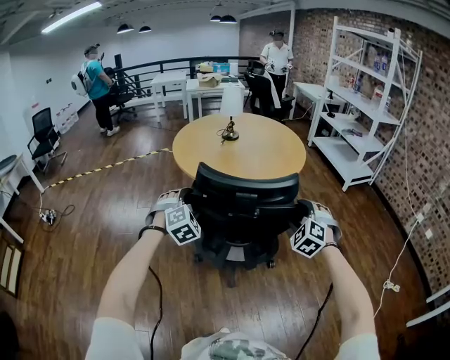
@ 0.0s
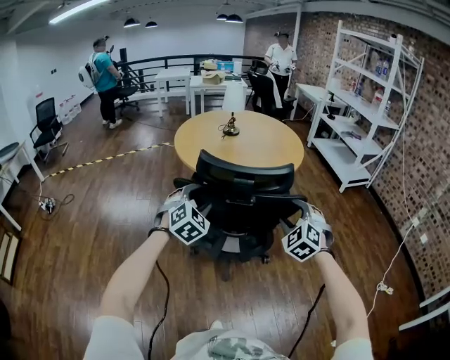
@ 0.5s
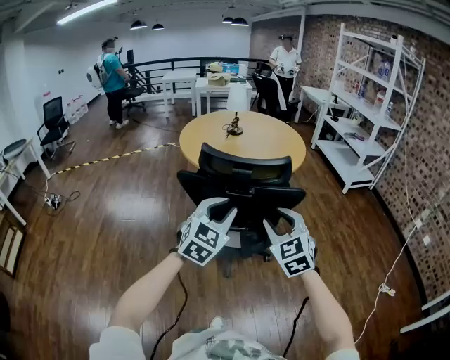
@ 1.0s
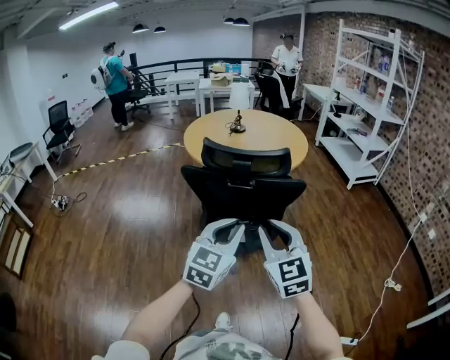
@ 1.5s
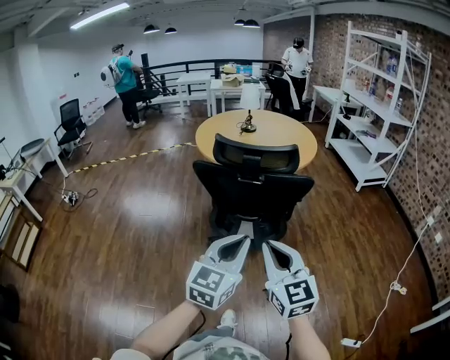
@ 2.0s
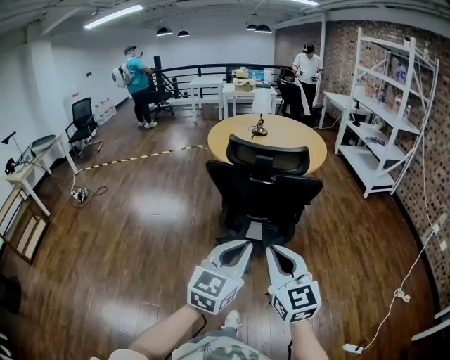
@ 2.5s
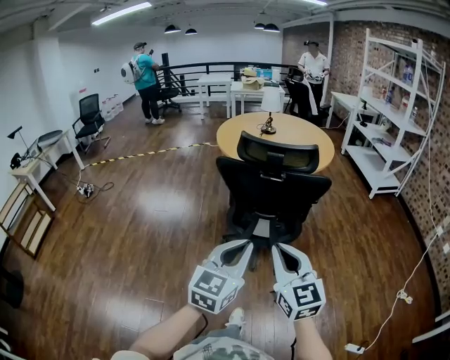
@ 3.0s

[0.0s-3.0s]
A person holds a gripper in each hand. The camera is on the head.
0.0s to 1.5s: The right gripper travels backward by roughly 25 cm, turns by roughly 50 degrees, and closes its fingers, while the left gripper moves backward and to the right, about 30 cm, changes its angle by some 60 degrees, and closes.
1.5s to 3.0s: The two grippers go approximately 10 cm backward.

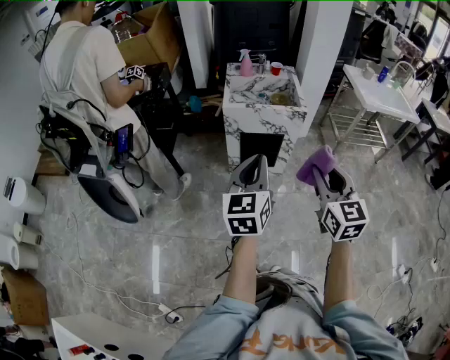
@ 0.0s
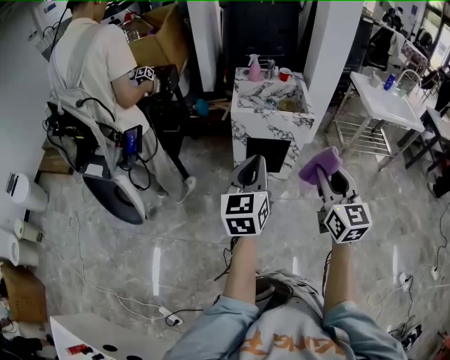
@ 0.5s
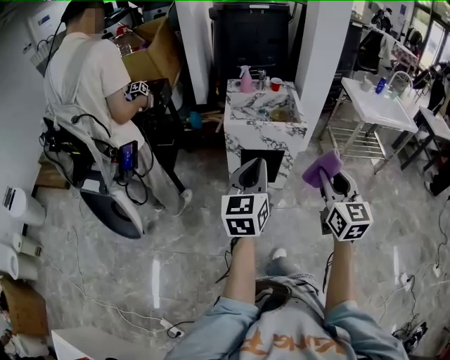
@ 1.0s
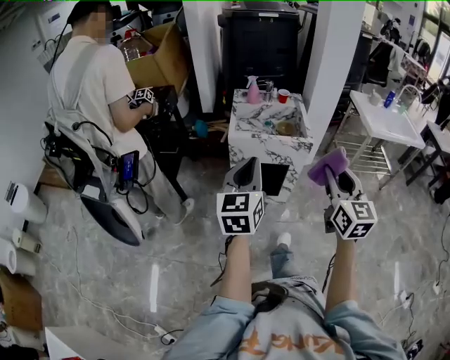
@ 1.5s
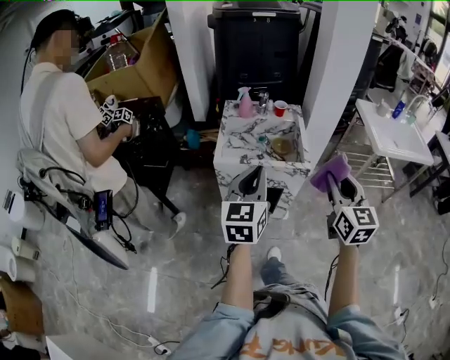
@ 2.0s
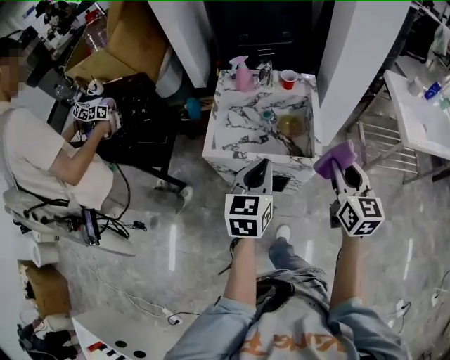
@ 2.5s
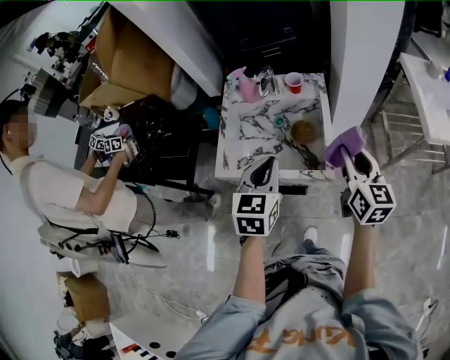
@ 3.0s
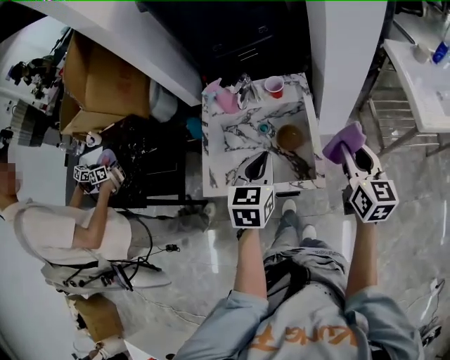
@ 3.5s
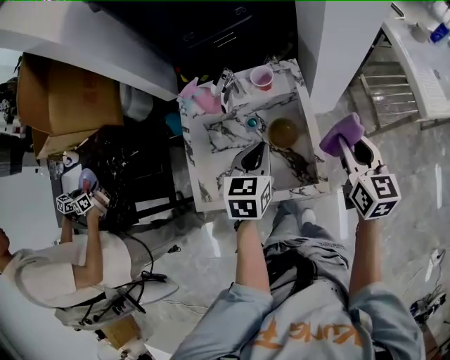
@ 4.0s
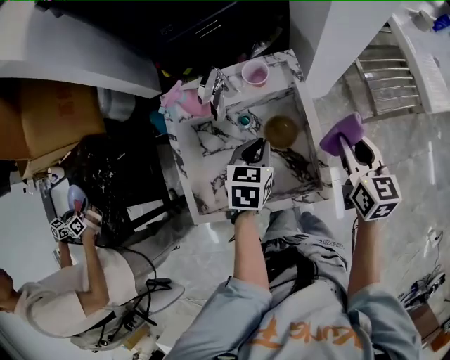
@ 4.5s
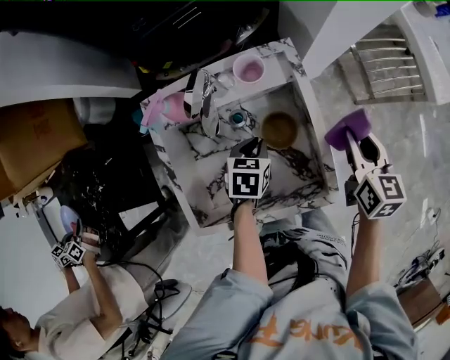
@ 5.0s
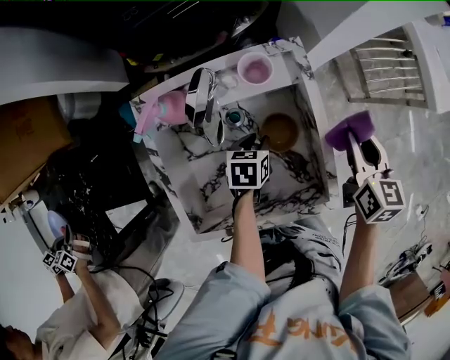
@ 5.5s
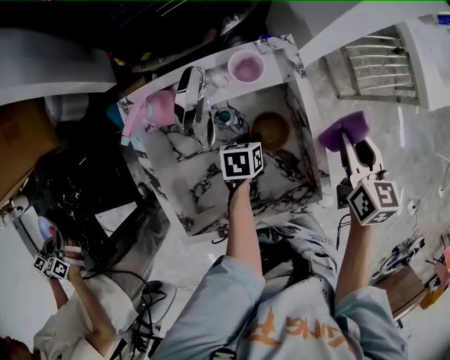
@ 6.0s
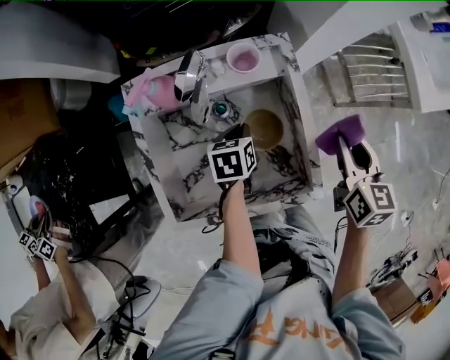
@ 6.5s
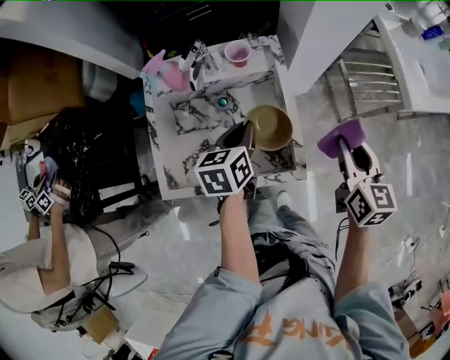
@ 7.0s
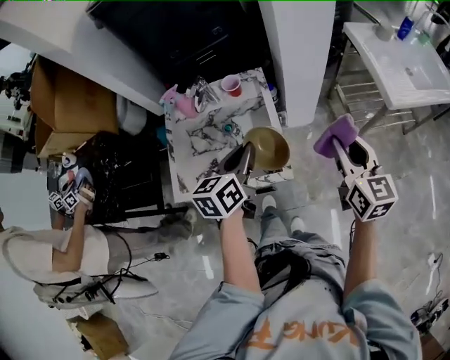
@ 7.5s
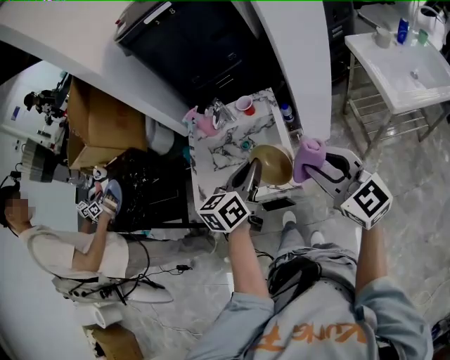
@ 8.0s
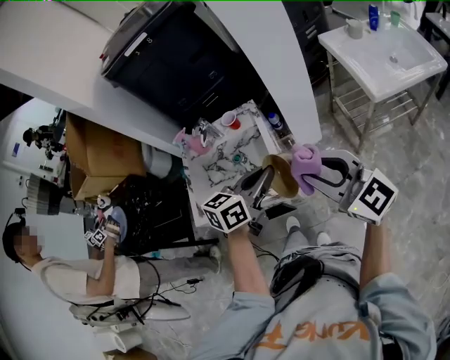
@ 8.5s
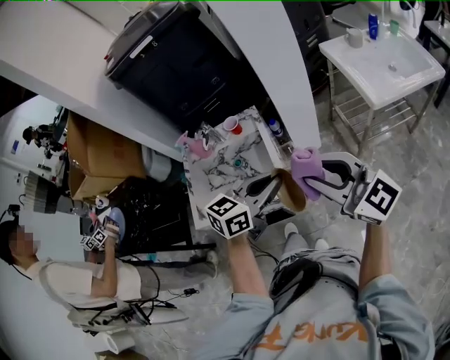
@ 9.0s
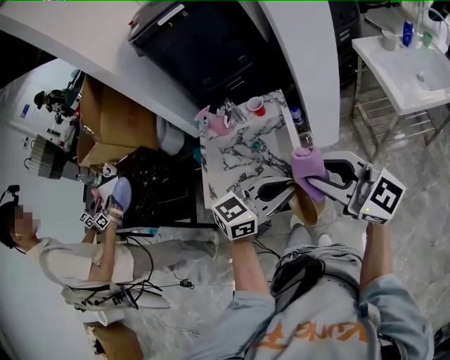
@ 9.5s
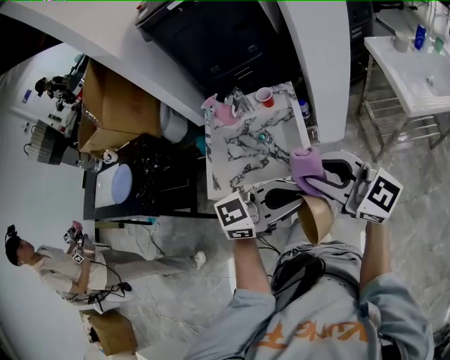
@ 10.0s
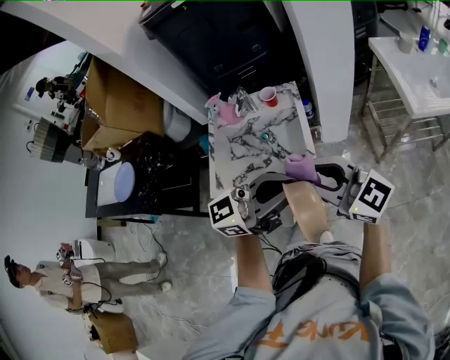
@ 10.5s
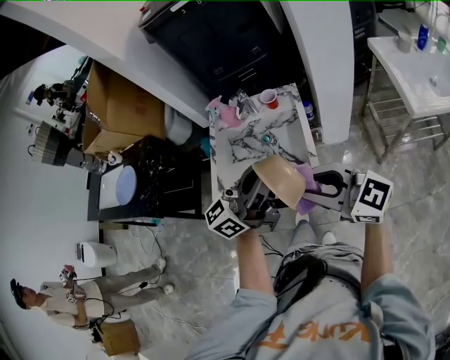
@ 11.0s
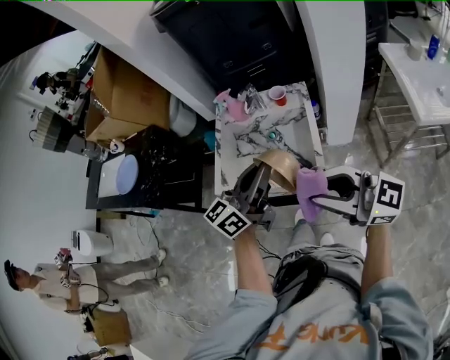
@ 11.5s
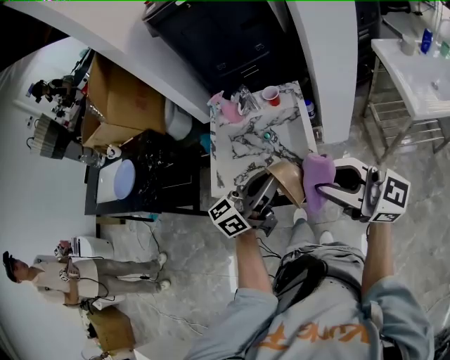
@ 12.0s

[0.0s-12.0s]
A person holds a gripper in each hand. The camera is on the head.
0.0s to 2.0s: Both grippers travel together forward, about 25 cm.
2.0s to 4.0s: Both grippers travel together forward and downward, some 40 cm. The right gripper rotates some 20 degrees, while the left gripper changes its angle by roughly 30 degrees.
4.0s to 6.0s: The right gripper moves downward and forward, approximately 10 cm. The left gripper goes about 25 cm downward, and swivels roughly 40 degrees.
6.0s to 8.0s: The right gripper travels upward by about 20 cm, and points its fingers some 30 degrees further upward. Meanwhile the left gripper goes roughly 35 cm upward, and points its fingers about 40 degrees further upward.
8.0s to 10.0s: The left gripper ends up roughly 15 cm from where it was, and turns by about 50 degrees, while the right gripper changes place by some 10 cm, and turns by approximately 20 degrees.
10.0s to 12.0s: The left gripper ends up some 10 cm from where it was, and changes its angle by some 40 degrees.

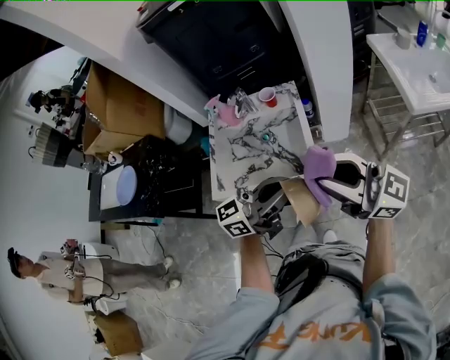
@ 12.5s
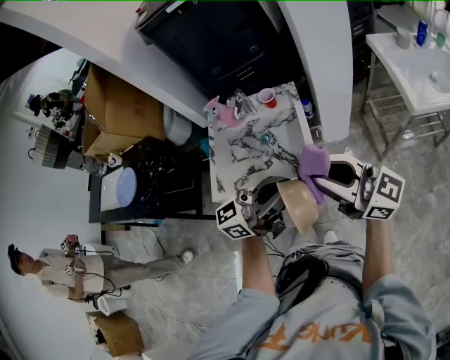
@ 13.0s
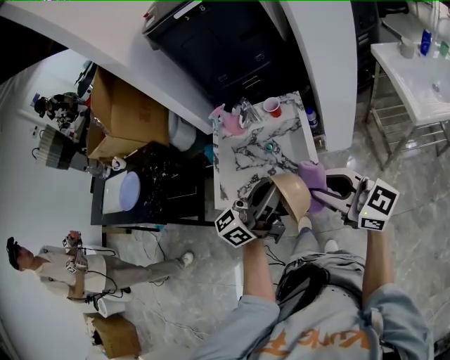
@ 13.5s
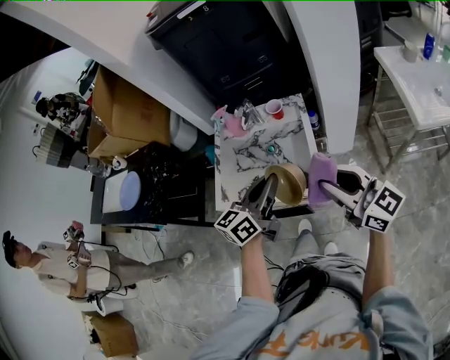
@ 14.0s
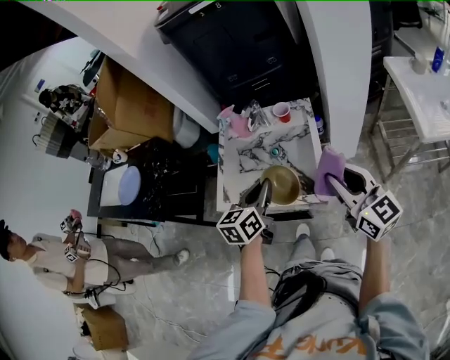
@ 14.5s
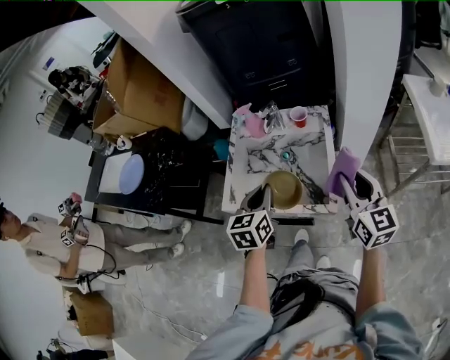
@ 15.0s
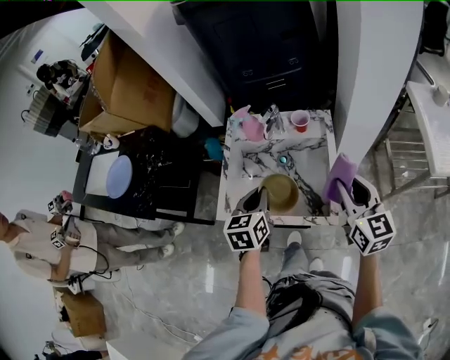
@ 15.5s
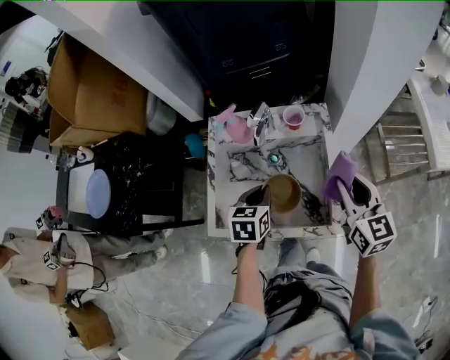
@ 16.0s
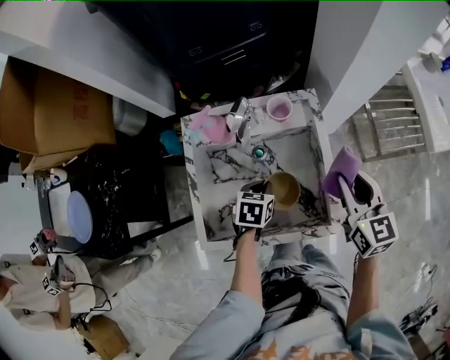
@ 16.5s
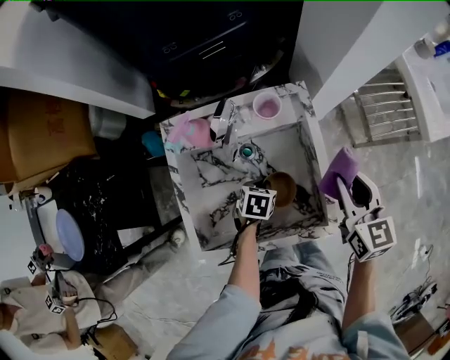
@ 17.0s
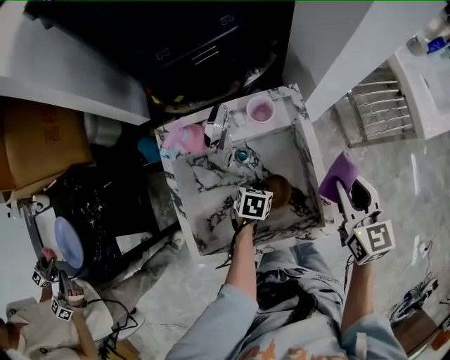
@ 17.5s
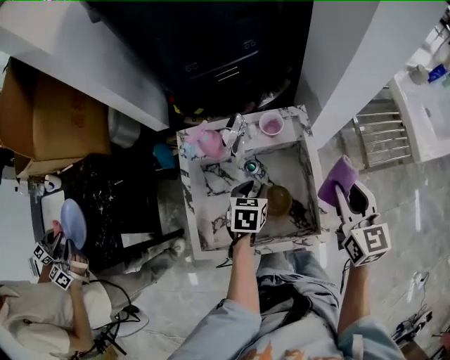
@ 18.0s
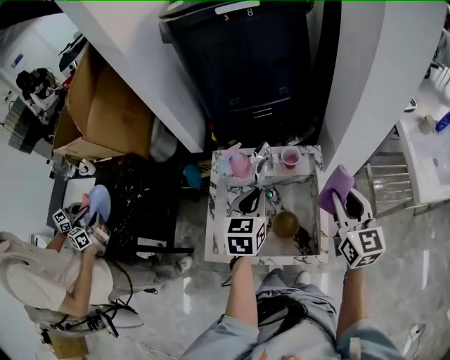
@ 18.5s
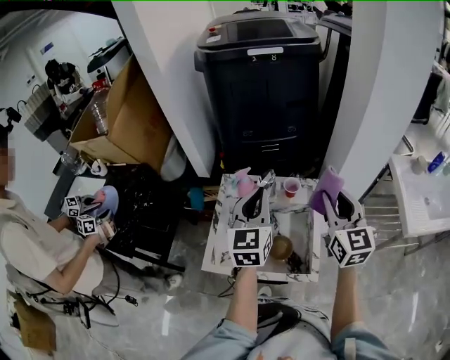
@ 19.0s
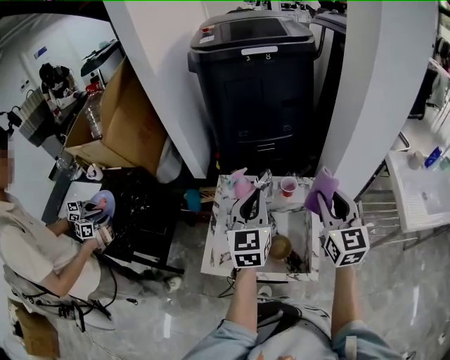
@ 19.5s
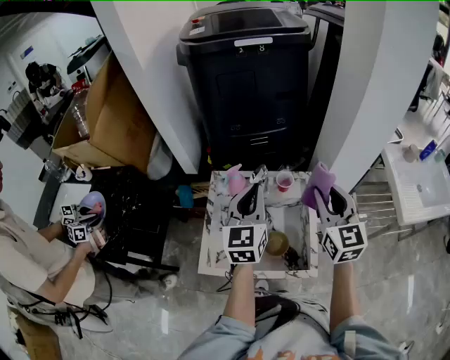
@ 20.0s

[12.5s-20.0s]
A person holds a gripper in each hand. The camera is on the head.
12.5s to 14.5s: The right gripper changes place by approximately 10 cm, and changes its angle by about 30 degrees, while the left gripper moves some 15 cm, and tips its fingers downward by about 30 degrees.
14.5s to 16.5s: The right gripper goes some 20 cm forward and downward, and rotates approximately 30 degrees; the left gripper travels downward and forward by some 25 cm, and points its fingers roughly 40 degrees further downward.
16.5s to 18.0s: The left gripper moves roughly 10 cm downward and comes back, and opens.
18.0s to 20.0s: The right gripper moves upward and to the left, some 15 cm, and changes its angle by approximately 20 degrees. Meanwhile the left gripper heads upward, covering about 30 cm, tilts its fingers approximately 50 degrees upward, and closes.

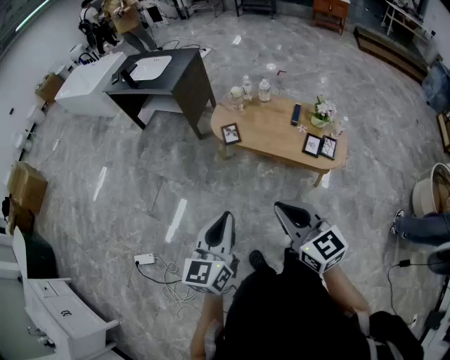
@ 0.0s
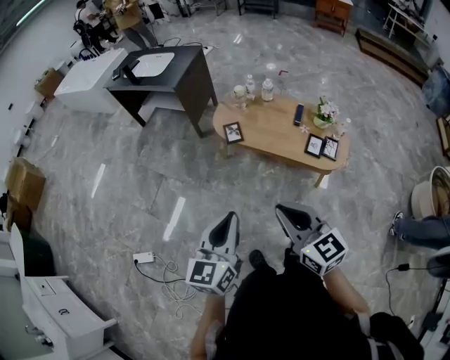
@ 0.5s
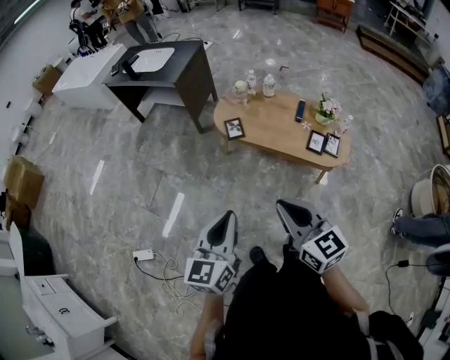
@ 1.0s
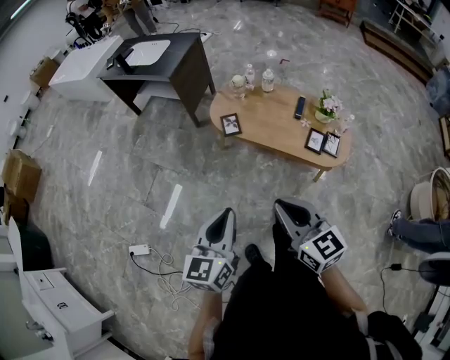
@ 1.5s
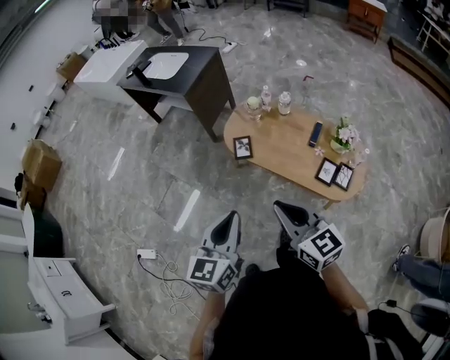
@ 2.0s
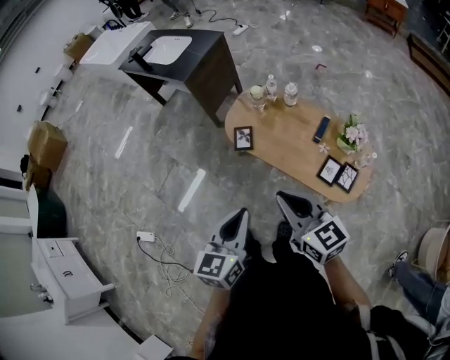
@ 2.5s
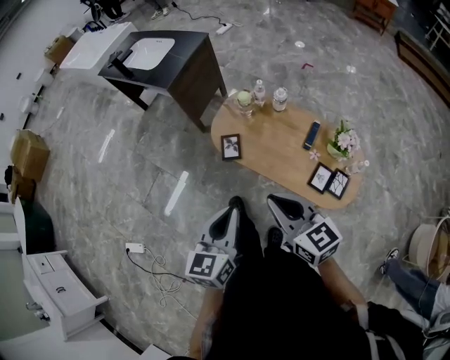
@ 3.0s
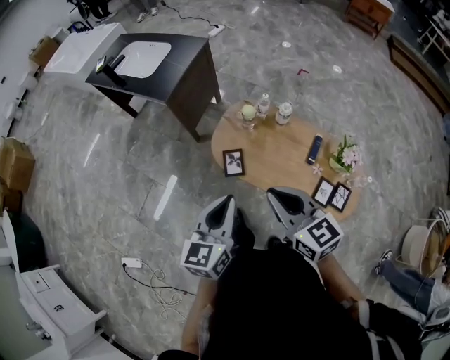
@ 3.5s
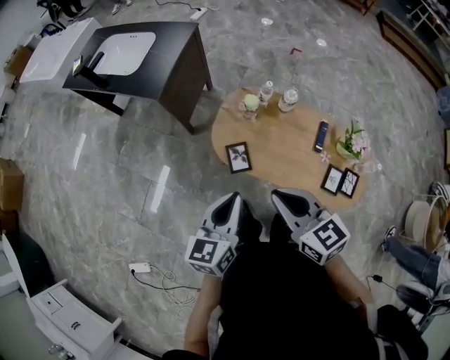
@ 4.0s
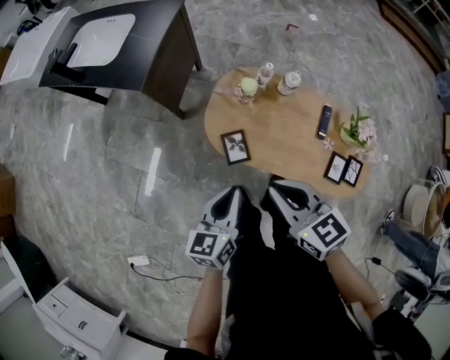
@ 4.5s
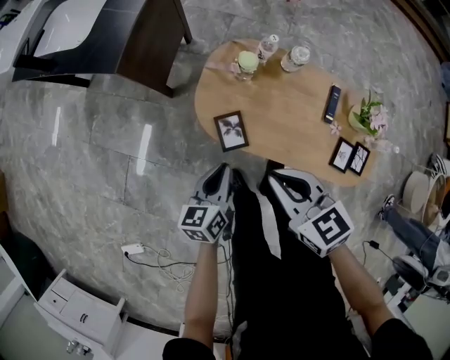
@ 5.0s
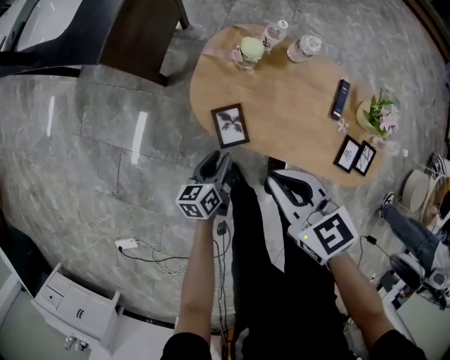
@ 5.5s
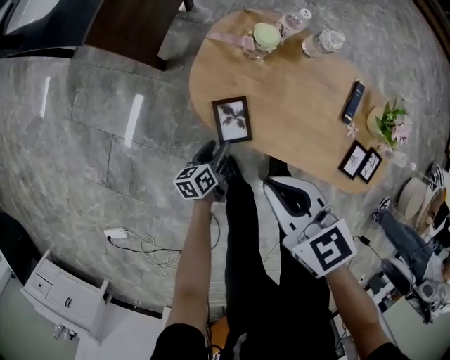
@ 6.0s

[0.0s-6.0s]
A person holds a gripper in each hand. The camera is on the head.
0.0s to 2.0s: The left gripper heads forward and to the right, covering about 15 cm; the right gripper is displaced forward by some 15 cm.
2.0s to 4.0s: The two grippers go some 35 cm forward.
4.0s to 6.0s: The left gripper is displaced downward by about 50 cm, swivels about 40 degrees, and opens its fingers. Meanwhile the right gripper travels downward and forward by some 25 cm.
